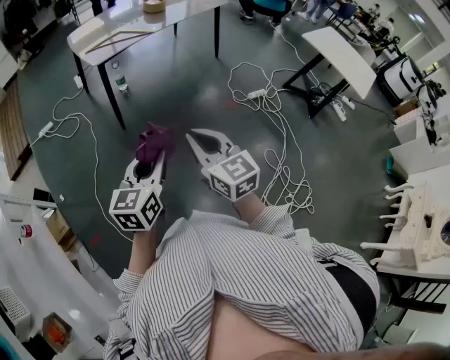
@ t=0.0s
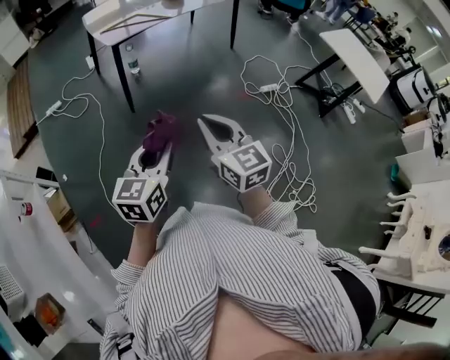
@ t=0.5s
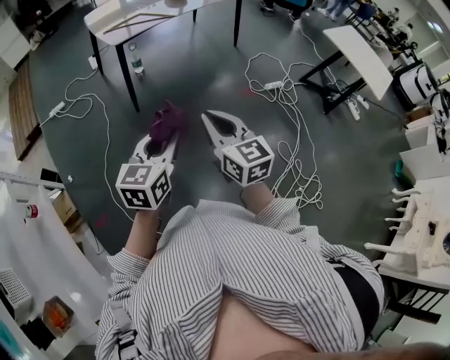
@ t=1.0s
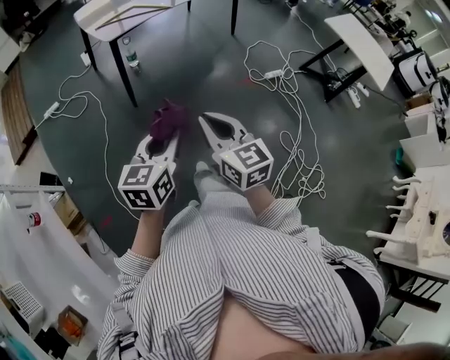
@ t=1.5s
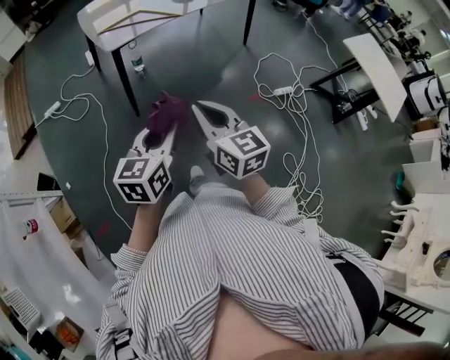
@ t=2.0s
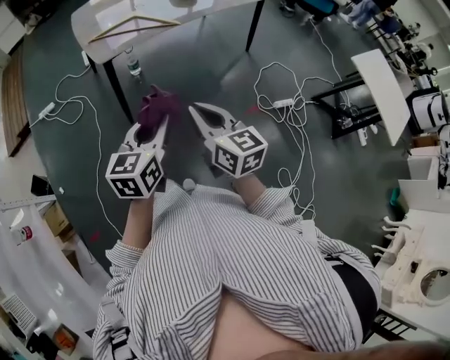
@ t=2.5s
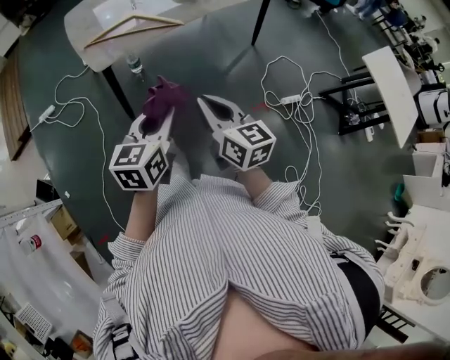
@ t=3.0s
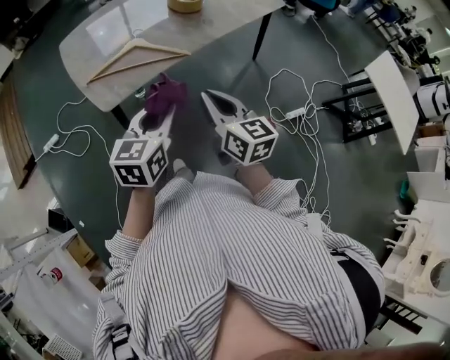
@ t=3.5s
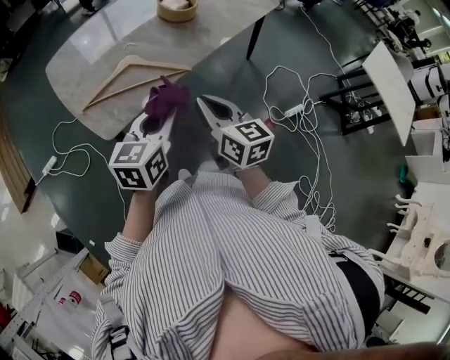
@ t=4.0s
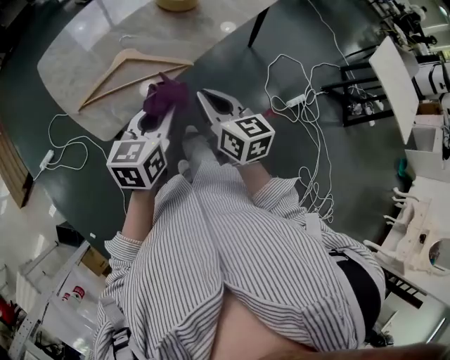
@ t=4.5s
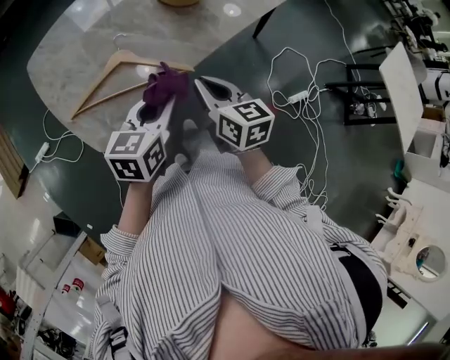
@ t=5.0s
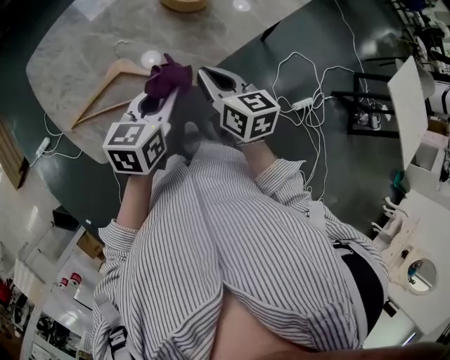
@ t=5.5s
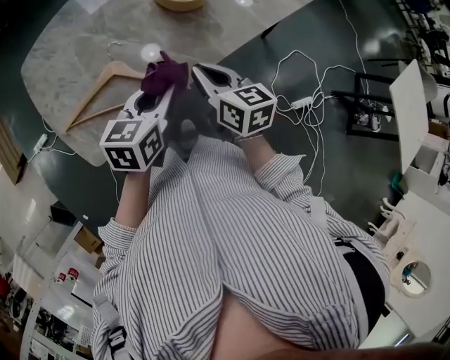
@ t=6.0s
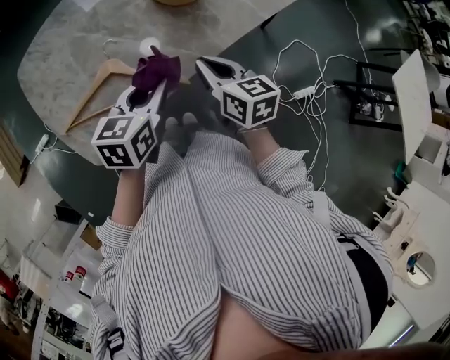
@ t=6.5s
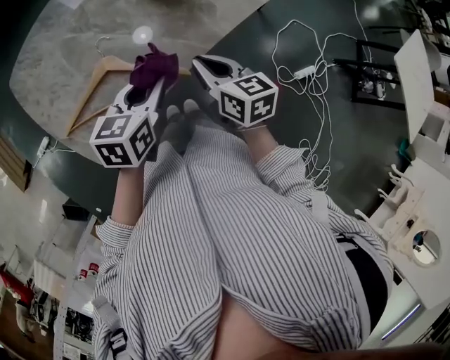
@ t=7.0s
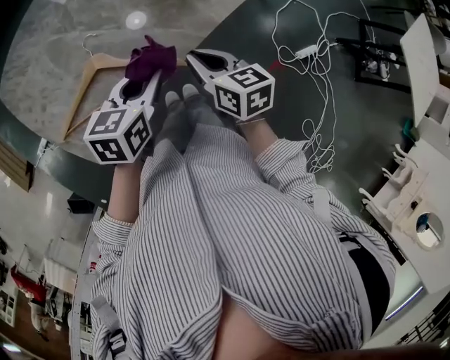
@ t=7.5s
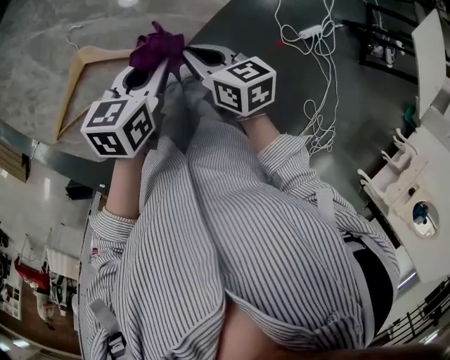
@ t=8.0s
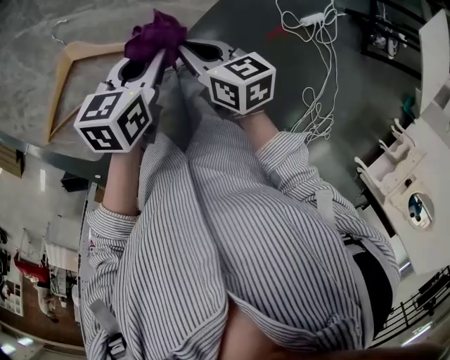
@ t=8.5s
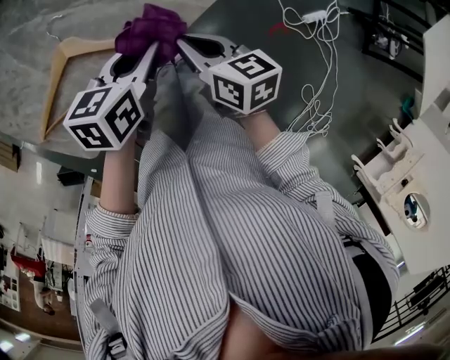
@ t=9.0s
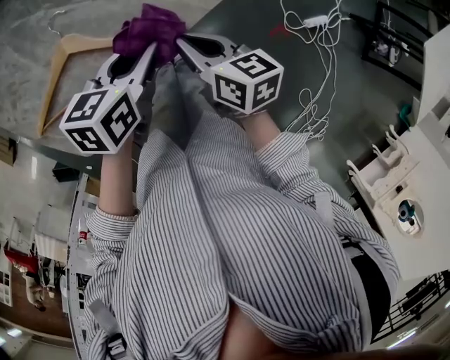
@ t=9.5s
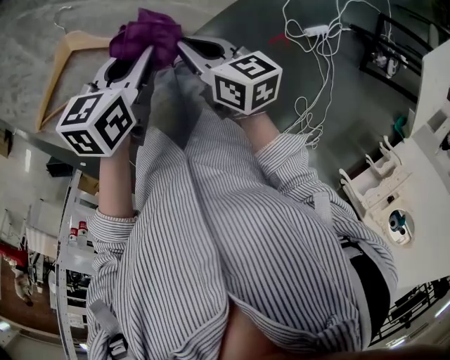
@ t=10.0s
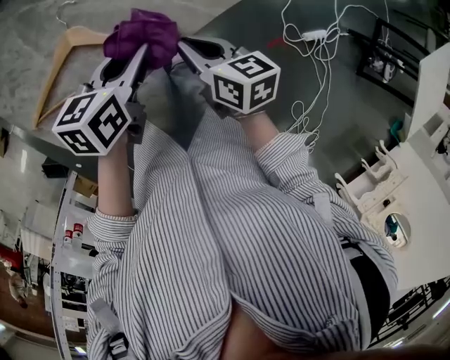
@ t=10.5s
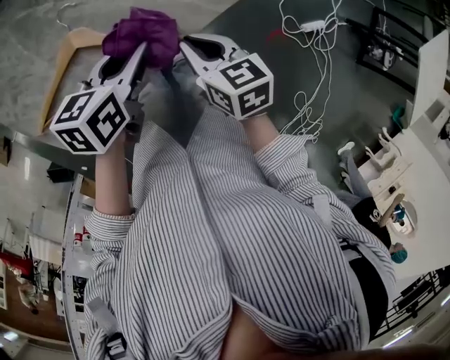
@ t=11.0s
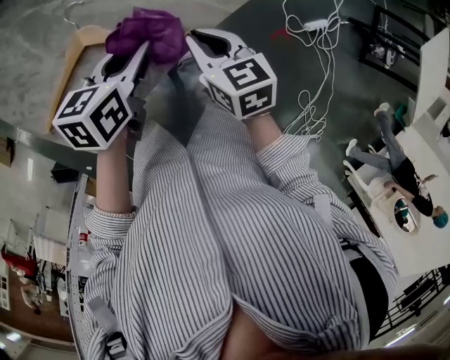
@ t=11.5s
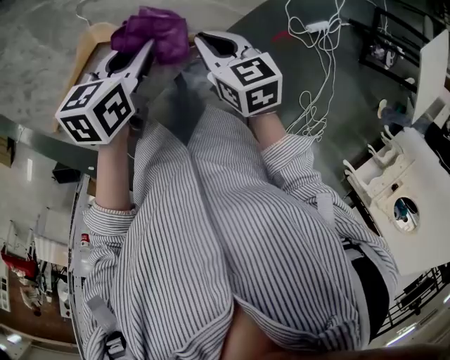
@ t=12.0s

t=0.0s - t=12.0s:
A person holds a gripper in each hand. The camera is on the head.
t=0.0s - t=2.0s: Both grippers travel together forward, approximately 25 cm.
t=2.0s - t=4.0s: Both grippers are carried forward, about 50 cm.
t=4.0s - t=6.0s: The two grippers go approximately 25 cm forward.
t=6.0s - t=8.0s: Both grippers travel together downward, roughly 10 cm.
t=8.0s - t=10.0s: The grippers move only a little.
t=10.0s - t=12.0s: The right gripper rotates roughly 20 degrees. Meanwhile the left gripper travels to the left by roughly 10 cm.

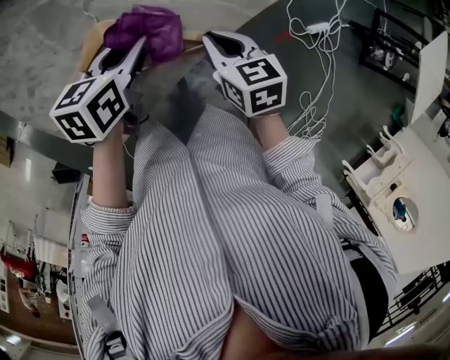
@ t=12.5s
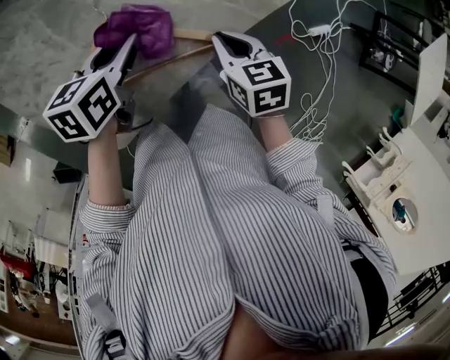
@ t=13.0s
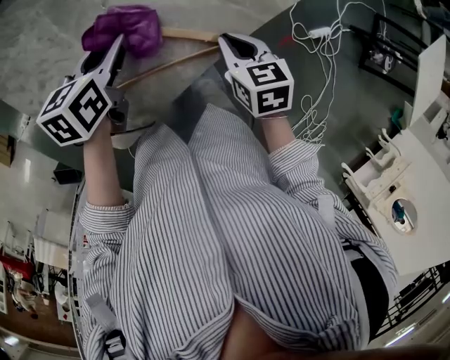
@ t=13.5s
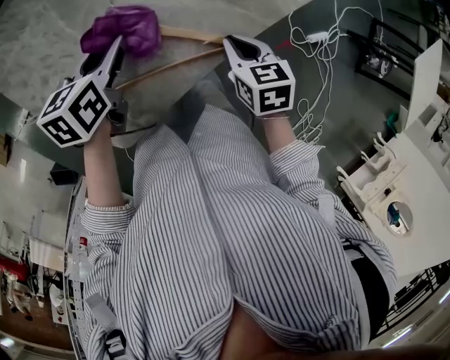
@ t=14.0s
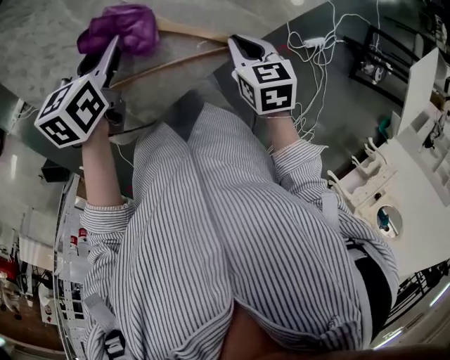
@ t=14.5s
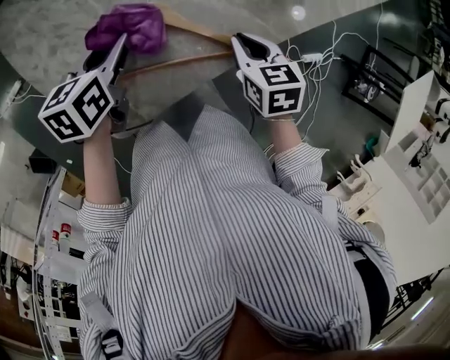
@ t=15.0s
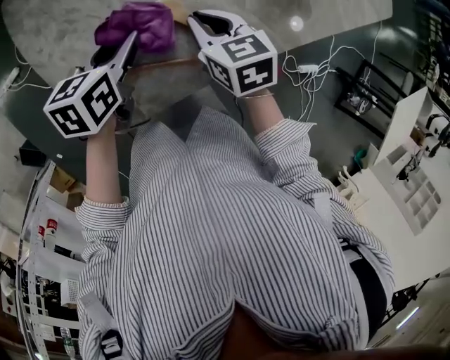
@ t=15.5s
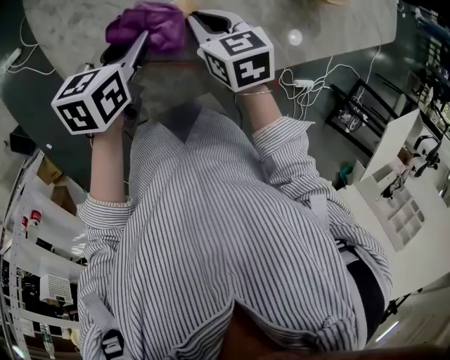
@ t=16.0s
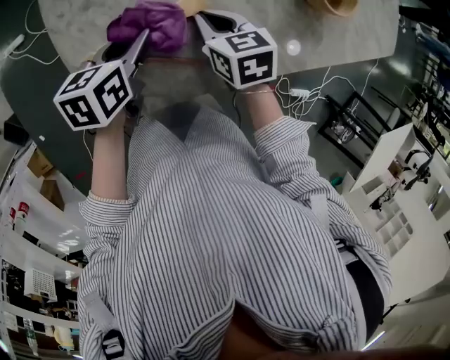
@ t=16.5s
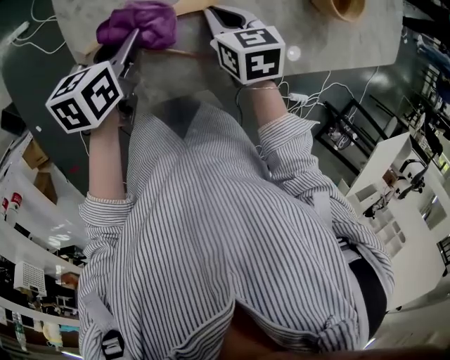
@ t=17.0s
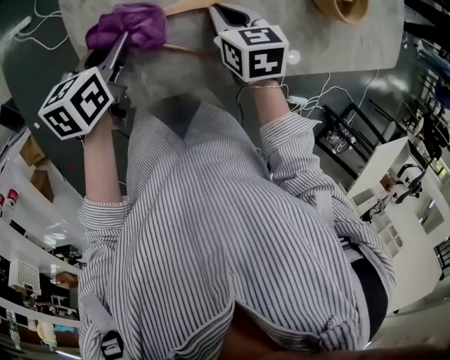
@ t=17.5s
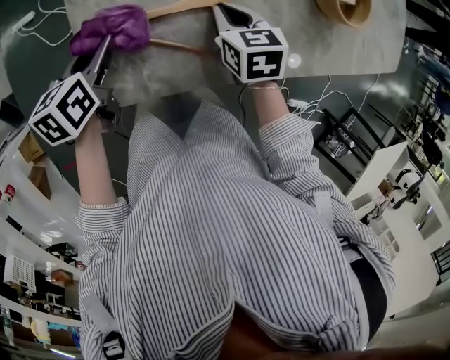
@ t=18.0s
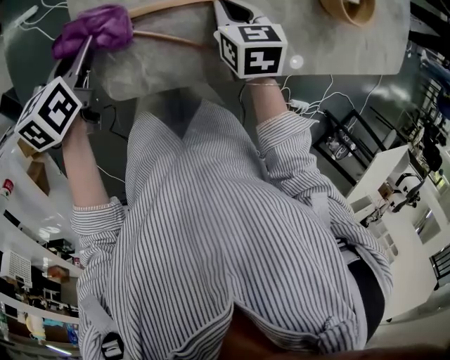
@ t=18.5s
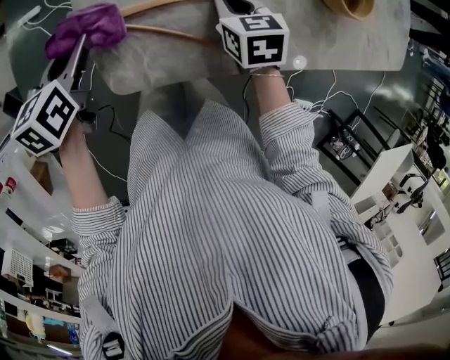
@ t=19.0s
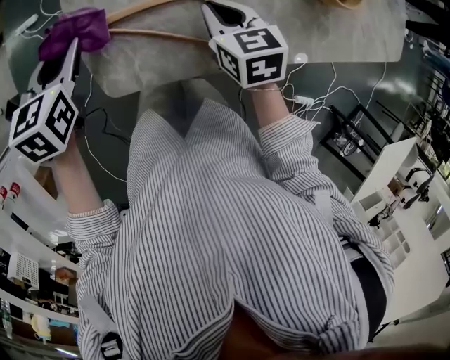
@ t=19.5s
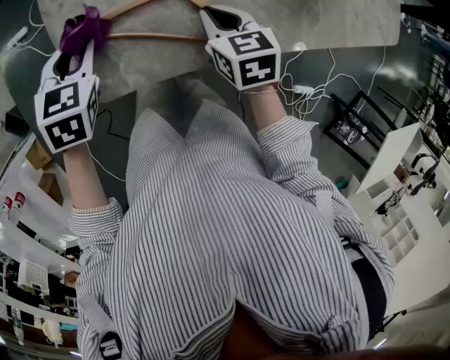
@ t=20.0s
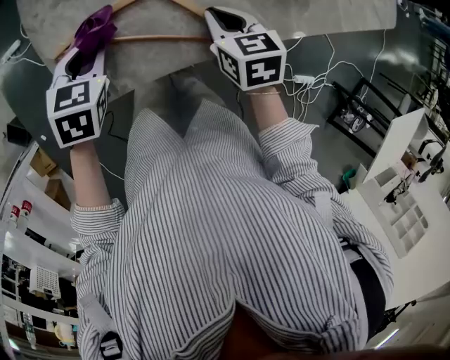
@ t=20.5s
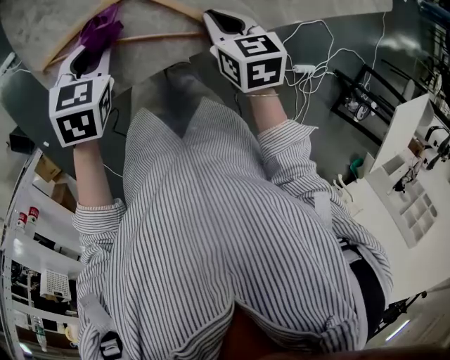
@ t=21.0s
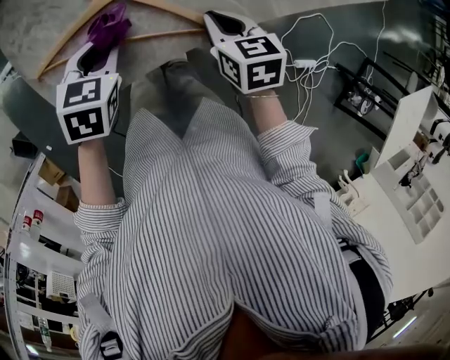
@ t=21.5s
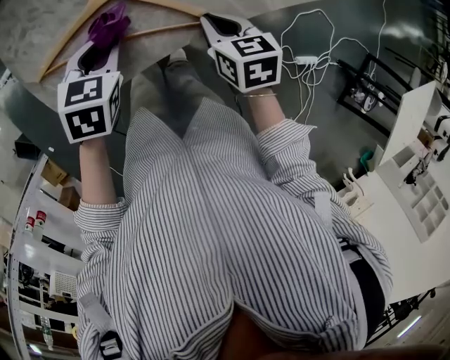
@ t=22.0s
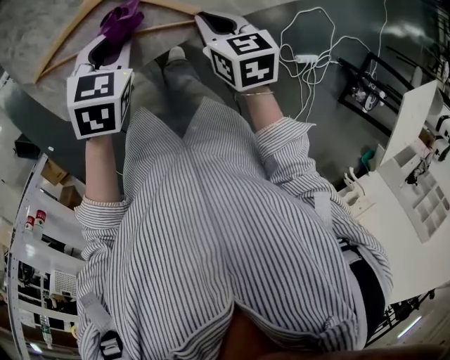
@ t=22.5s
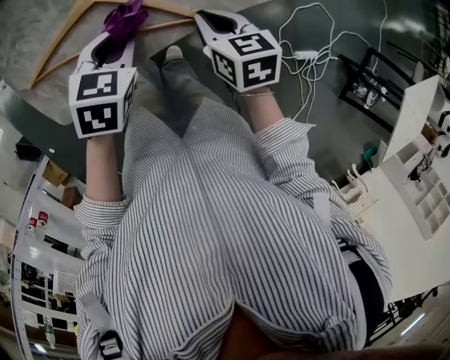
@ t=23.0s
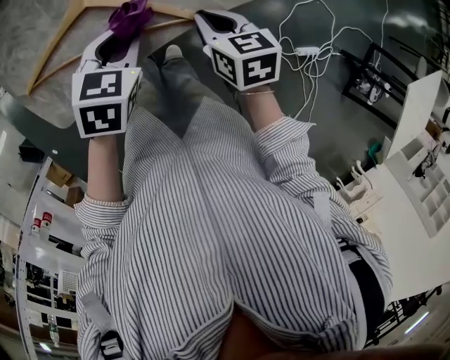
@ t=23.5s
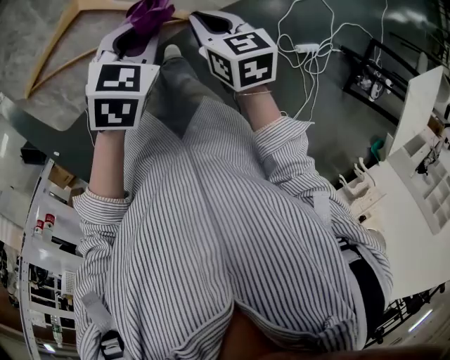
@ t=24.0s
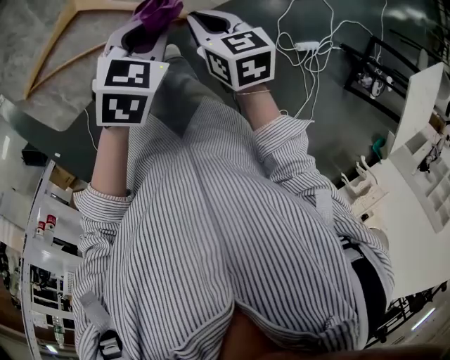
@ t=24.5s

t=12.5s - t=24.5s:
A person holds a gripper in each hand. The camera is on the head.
t=12.5s - t=14.5s: The left gripper goes roughly 10 cm to the left.
t=14.5s - t=16.5s: The left gripper moves to the left, approximately 5 cm. The right gripper is displaced to the left and forward by approximately 20 cm, and swivels approximately 30 degrees.
t=16.5s - t=18.5s: The left gripper shifts about 15 cm to the left.
t=18.5s - t=20.5s: The left gripper shifts some 10 cm to the right, and rotates around the line of its fingers by some 40 degrees, clockwise from behind; the right gripper moves backward and to the right, about 10 cm.
t=20.5s - t=22.5s: The left gripper heads to the right, covering about 15 cm, while the right gripper heads to the right and backward, covering roughly 10 cm.
t=22.5s - t=24.5s: The left gripper shifts about 15 cm to the right.

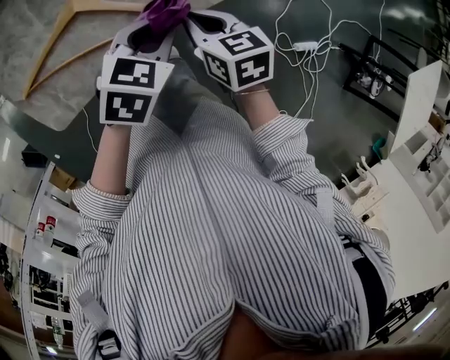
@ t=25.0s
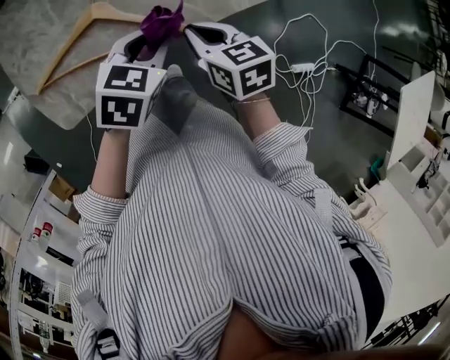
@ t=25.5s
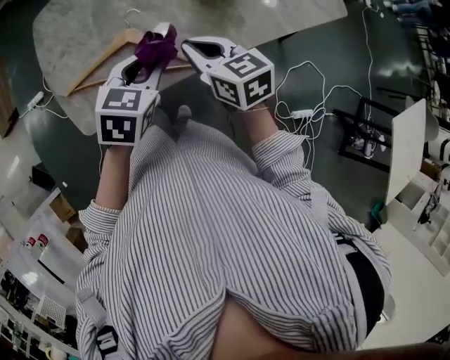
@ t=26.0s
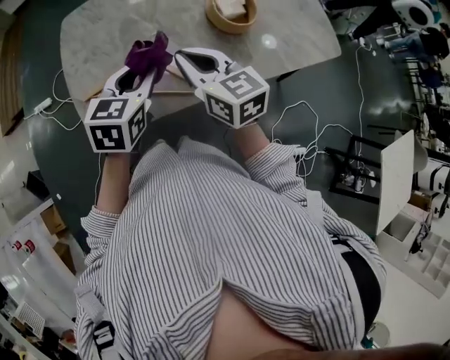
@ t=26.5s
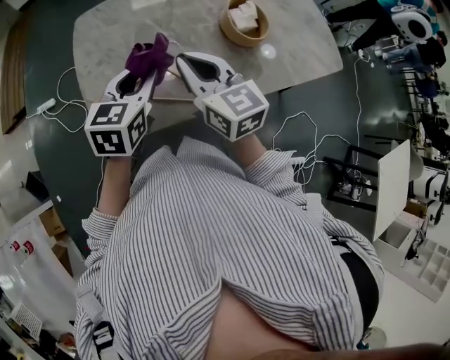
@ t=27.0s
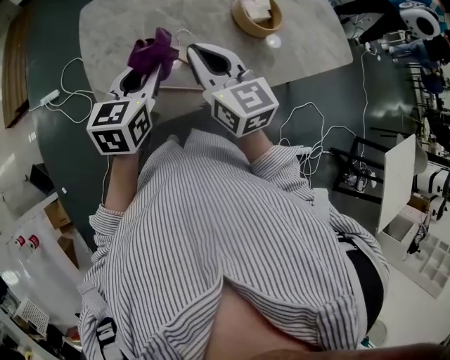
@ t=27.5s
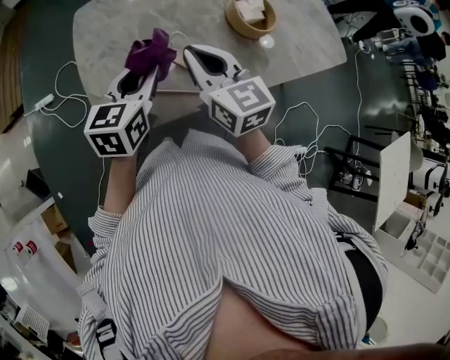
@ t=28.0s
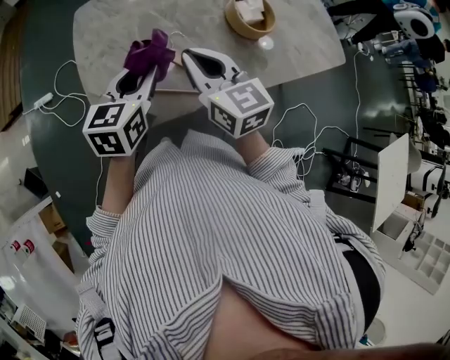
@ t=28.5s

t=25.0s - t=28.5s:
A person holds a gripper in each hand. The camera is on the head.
t=25.0s - t=27.0s: Both grippers move upward and to the left, some 30 cm. The left gripper swivels some 40 degrees; the right gripper tilts its fingers about 30 degrees upward.
t=27.0s - t=28.5s: The grippers make only small movements.
